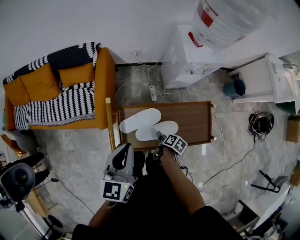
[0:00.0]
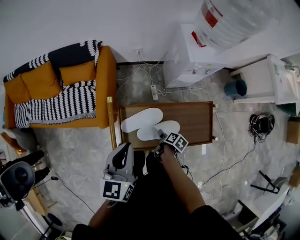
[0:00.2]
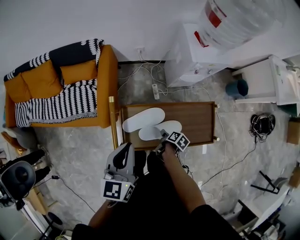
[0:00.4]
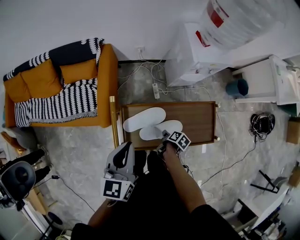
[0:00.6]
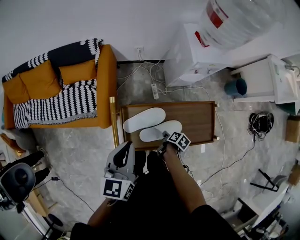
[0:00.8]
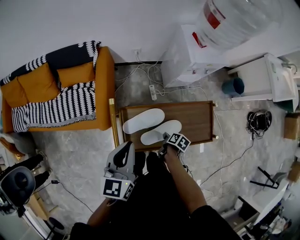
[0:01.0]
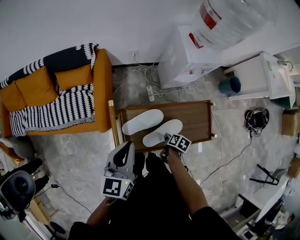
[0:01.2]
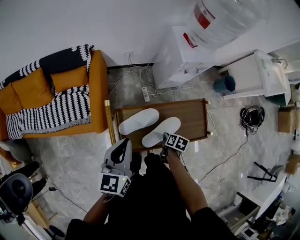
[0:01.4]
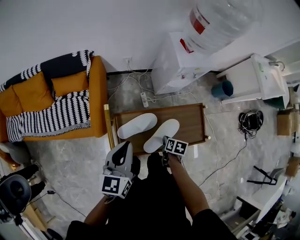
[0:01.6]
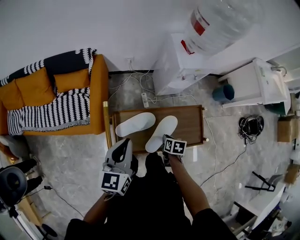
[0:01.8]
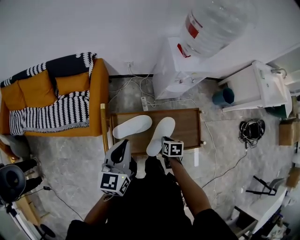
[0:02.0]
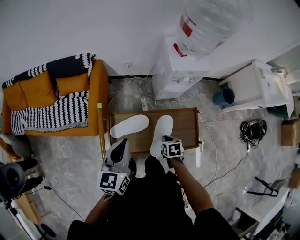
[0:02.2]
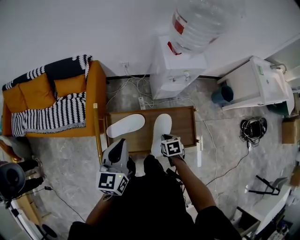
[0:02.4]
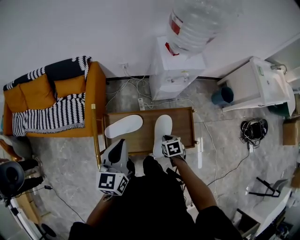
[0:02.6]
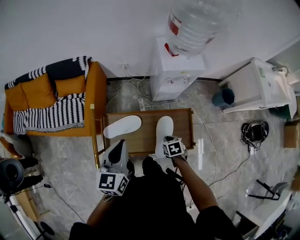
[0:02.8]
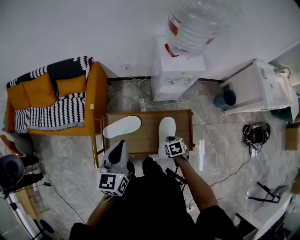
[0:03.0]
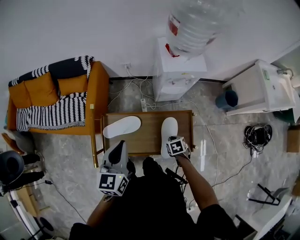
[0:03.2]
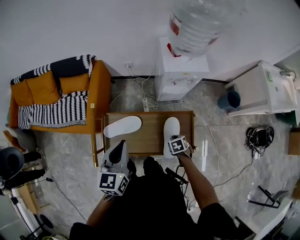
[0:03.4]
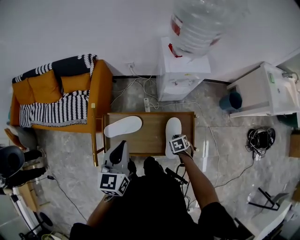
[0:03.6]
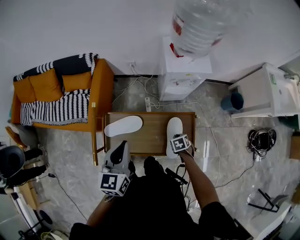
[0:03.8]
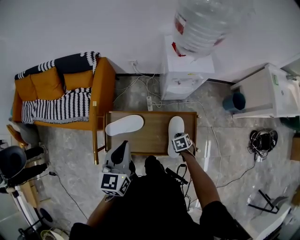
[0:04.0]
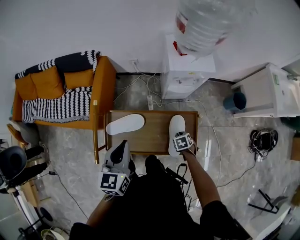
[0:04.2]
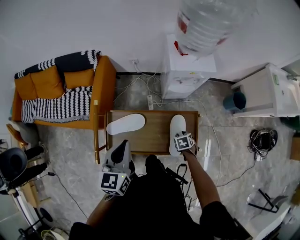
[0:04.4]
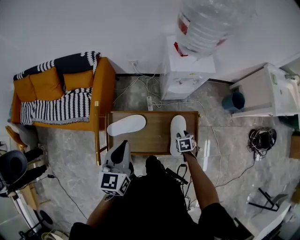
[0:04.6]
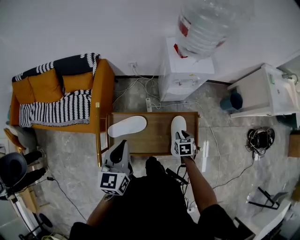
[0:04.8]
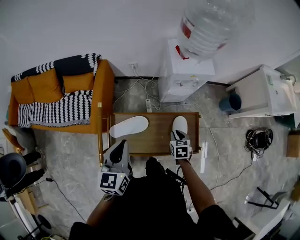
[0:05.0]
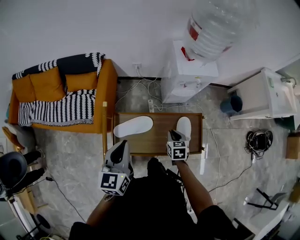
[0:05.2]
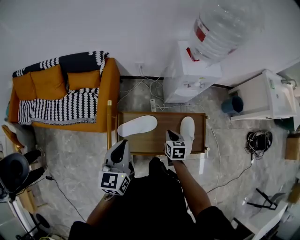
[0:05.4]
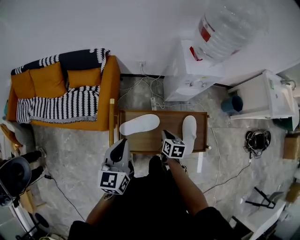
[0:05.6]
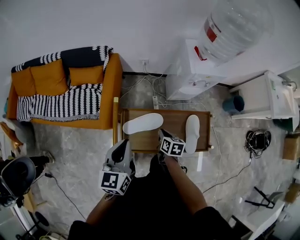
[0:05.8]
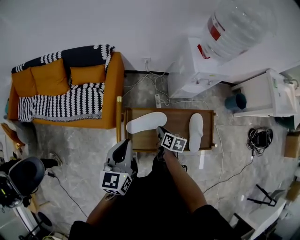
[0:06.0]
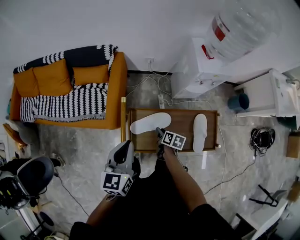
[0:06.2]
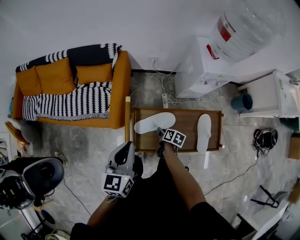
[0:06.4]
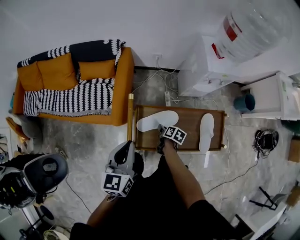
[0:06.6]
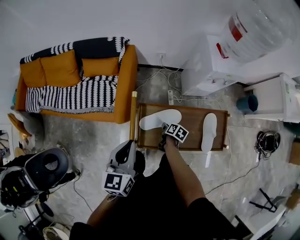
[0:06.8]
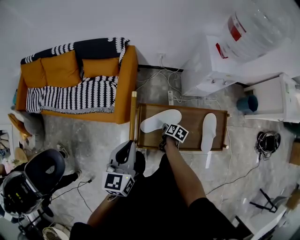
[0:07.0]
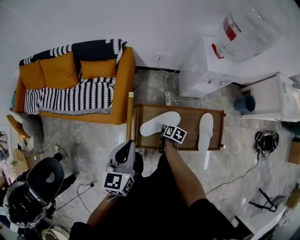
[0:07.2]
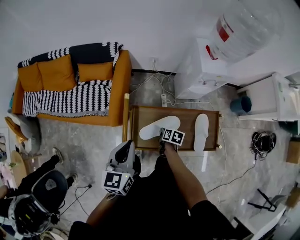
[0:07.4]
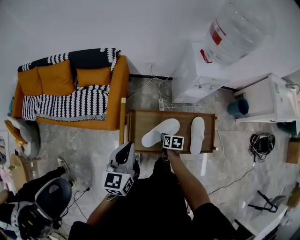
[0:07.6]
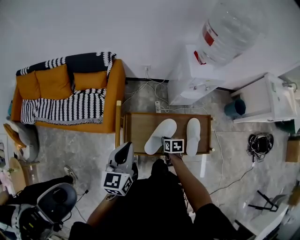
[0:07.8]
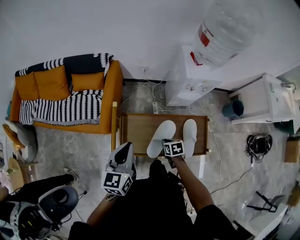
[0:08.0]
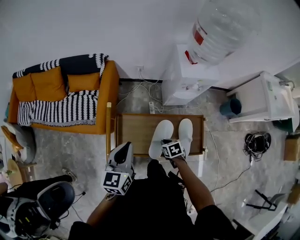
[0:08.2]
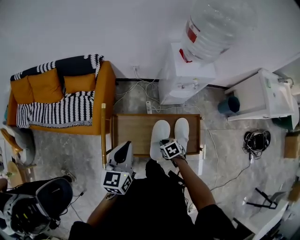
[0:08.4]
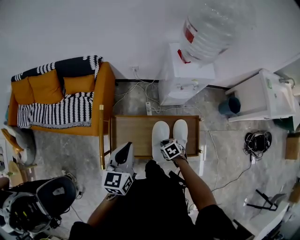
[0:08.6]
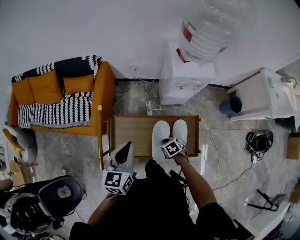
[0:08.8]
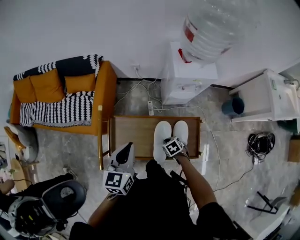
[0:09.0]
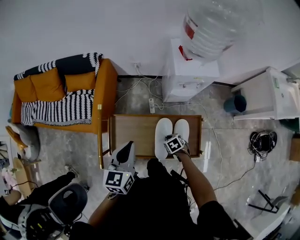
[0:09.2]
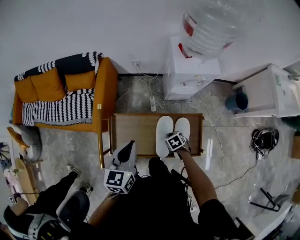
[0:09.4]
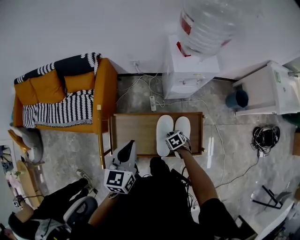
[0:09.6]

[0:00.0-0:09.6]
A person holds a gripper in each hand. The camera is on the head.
0:00.0 to 0:01.6: The right gripper turns by some 30 degrees, and closes its fingers.
0:01.6 to 0:03.2: Both grippers move to the right, approximately 15 cm. The right gripper twists roughly 40 degrees counterclockwise, seen from behind.
0:03.2 to 0:04.8: There are only small adjustments of the grippers.
0:04.8 to 0:06.4: The left gripper is displaced to the left by roughly 15 cm; the right gripper heads to the left, covering about 30 cm, twists about 50 degrees clockwise, seen from behind, and closes, then opens again.
0:06.4 to 0:08.0: The right gripper goes about 10 cm to the right, backward and upward, rotates around the line of its fingers by roughly 40 degrees, counterclockwise from behind, and closes up. The left gripper travels to the right by roughly 10 cm.
0:08.0 to 0:09.6: The left gripper travels to the right by some 15 cm, while the right gripper shifts approximately 15 cm to the right and downward, and rotates some 20 degrees.

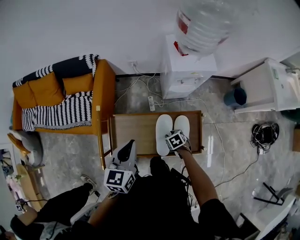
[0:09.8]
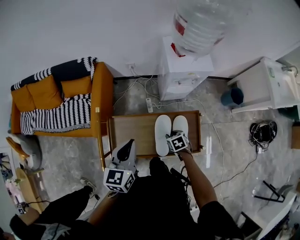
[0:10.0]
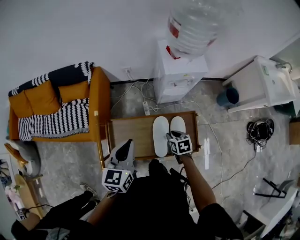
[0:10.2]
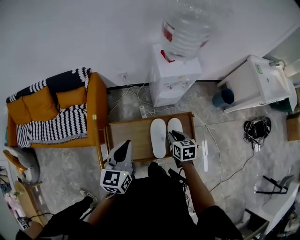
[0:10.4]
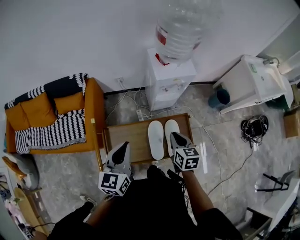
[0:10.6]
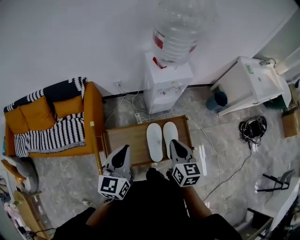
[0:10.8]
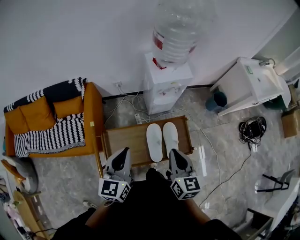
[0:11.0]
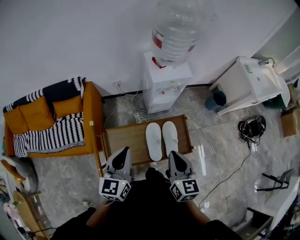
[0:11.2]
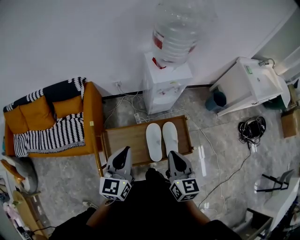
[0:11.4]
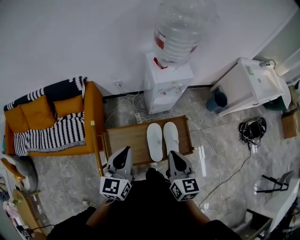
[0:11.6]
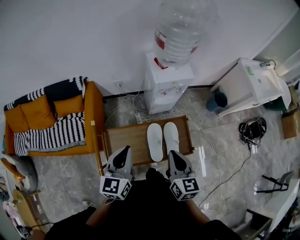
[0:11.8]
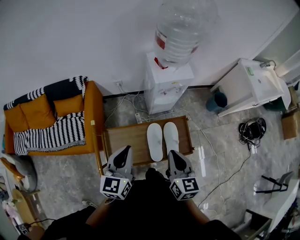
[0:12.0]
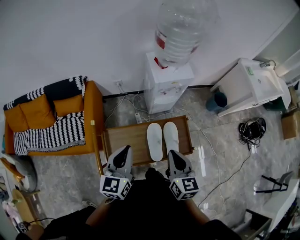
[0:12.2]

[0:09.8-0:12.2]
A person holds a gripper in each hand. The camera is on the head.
0:09.8 to 0:11.0: The right gripper goes some 35 cm upward, angles its fingers upward, by approximately 50 degrees, and closes its fingers, while the left gripper goes roughly 10 cm upward.
0:11.0 to 0:12.2: The grippers stay close to where they were, moving slightly.

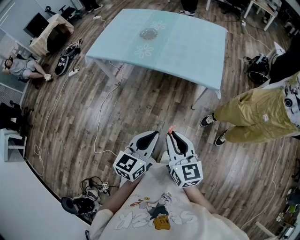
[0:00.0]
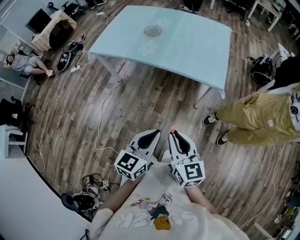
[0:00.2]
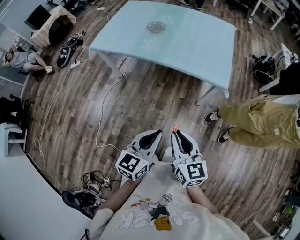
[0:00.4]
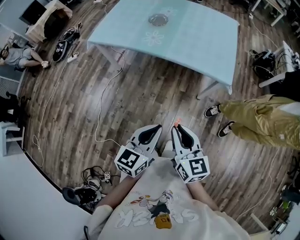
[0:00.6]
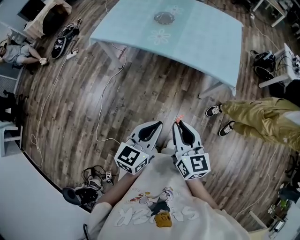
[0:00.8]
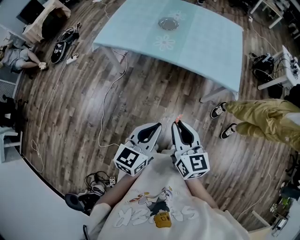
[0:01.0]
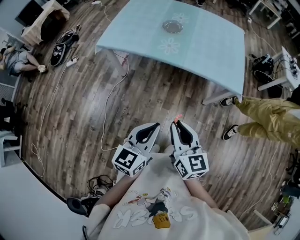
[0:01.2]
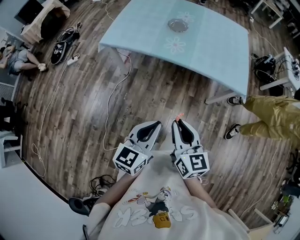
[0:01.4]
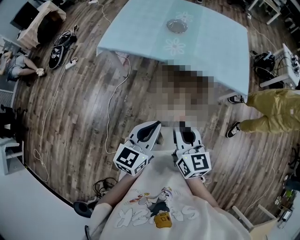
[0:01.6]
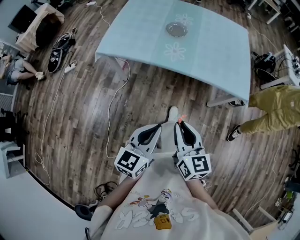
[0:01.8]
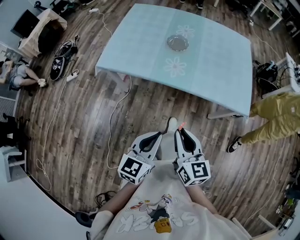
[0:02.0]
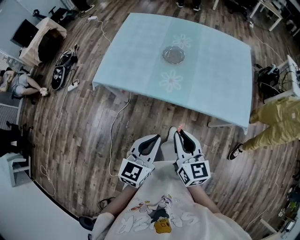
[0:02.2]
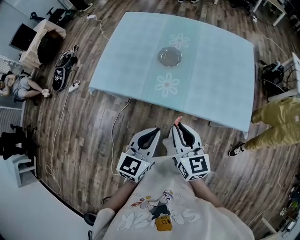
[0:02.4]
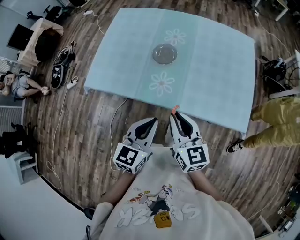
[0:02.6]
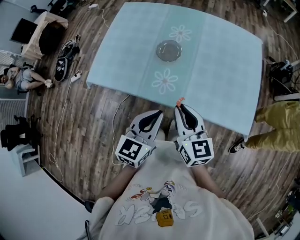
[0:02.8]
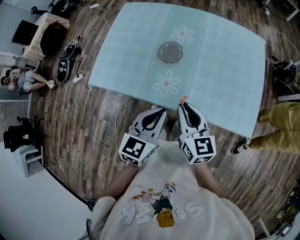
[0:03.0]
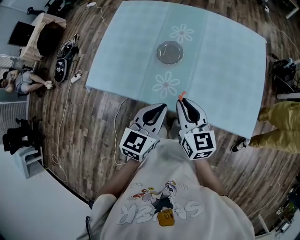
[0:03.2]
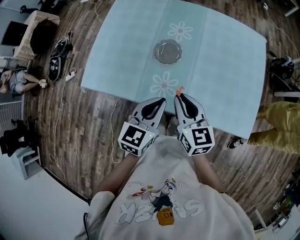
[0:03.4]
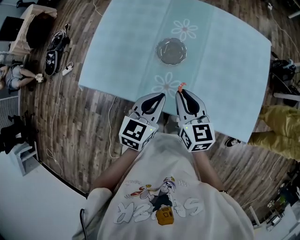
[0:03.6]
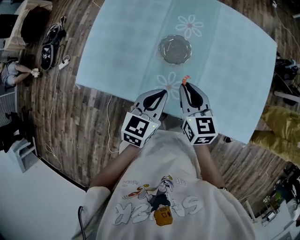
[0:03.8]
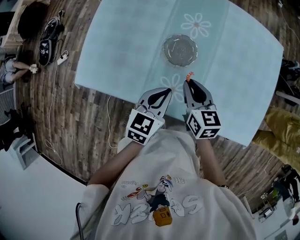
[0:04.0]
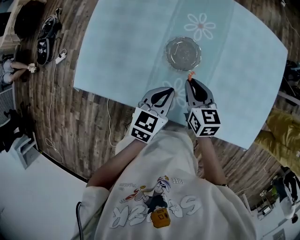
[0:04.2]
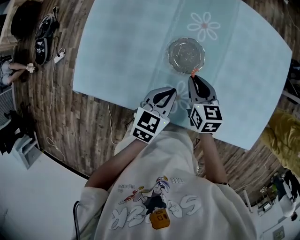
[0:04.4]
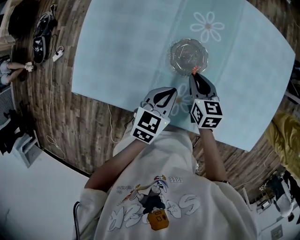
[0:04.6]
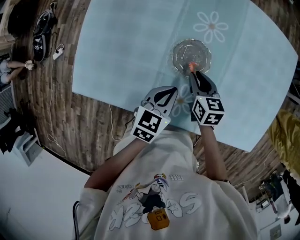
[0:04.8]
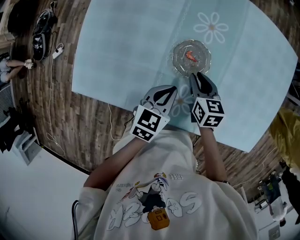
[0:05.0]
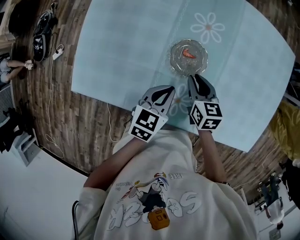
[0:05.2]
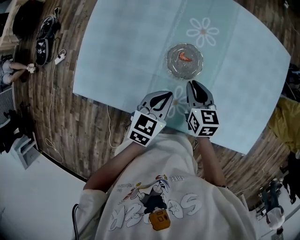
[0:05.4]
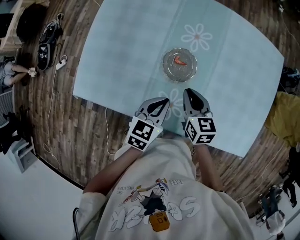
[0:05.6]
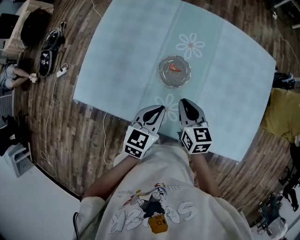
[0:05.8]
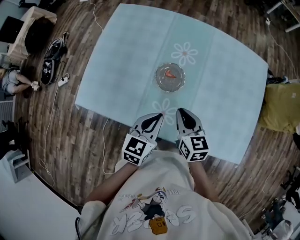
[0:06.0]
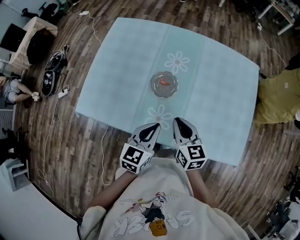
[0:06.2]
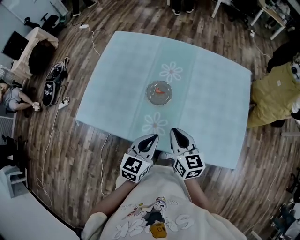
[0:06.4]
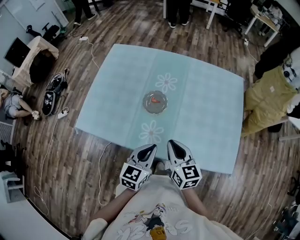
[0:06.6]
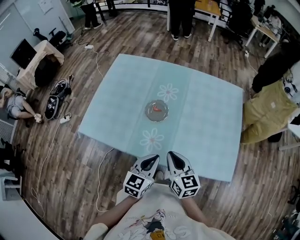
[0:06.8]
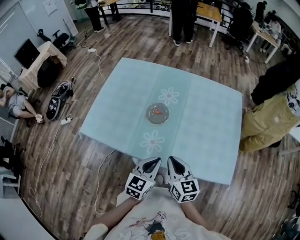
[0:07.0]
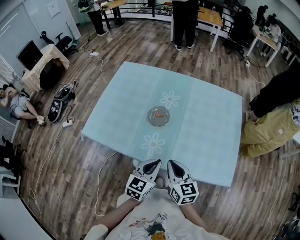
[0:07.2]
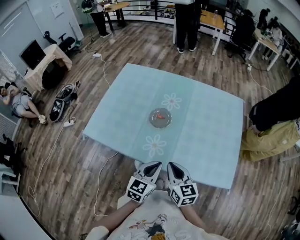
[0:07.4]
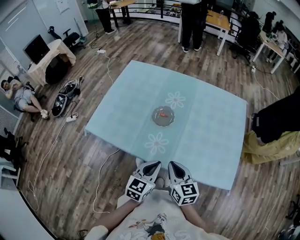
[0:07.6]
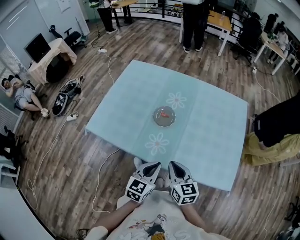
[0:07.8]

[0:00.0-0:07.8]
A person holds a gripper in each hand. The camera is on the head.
0:00.0 to 0:01.6: The right gripper shifts some 30 cm to the left and forward; the left gripper travels to the left by about 30 cm.
0:01.6 to 0:03.2: The two grippers travel together, forward, about 50 cm.
0:03.2 to 0:04.6: Both grippers travel together forward and downward, approximately 30 cm. The right gripper turns by some 20 degrees.
0:04.6 to 0:06.2: The grippers both shift backward and upward by roughly 20 cm.
0:06.2 to 0:07.8: Both grippers move backward, approximately 10 cm.

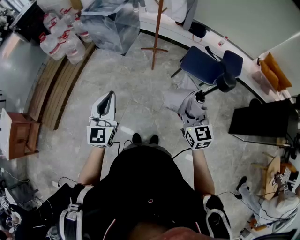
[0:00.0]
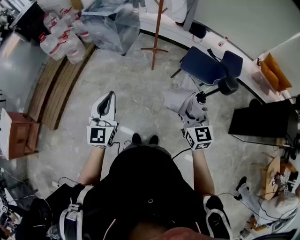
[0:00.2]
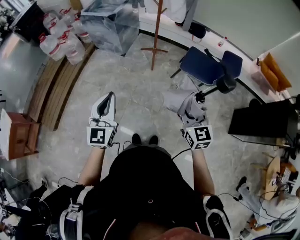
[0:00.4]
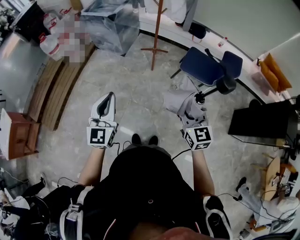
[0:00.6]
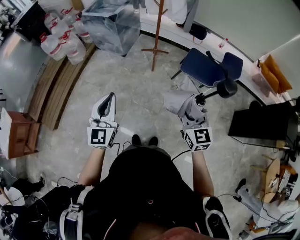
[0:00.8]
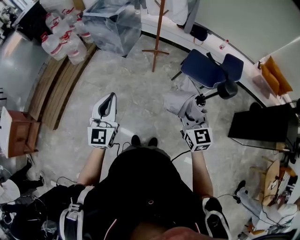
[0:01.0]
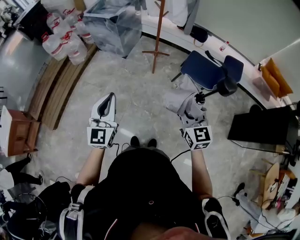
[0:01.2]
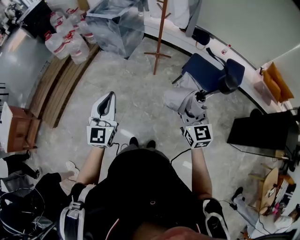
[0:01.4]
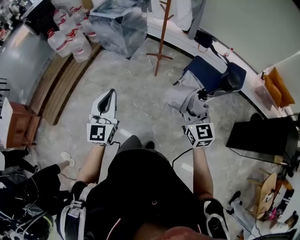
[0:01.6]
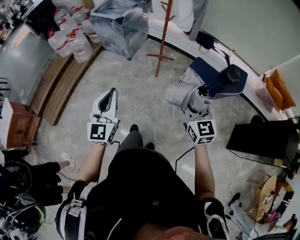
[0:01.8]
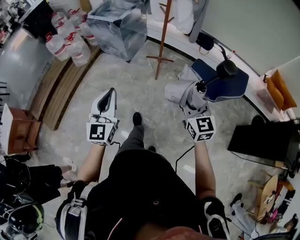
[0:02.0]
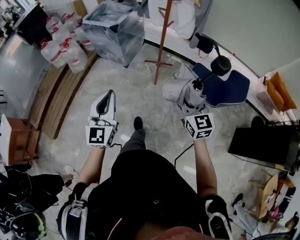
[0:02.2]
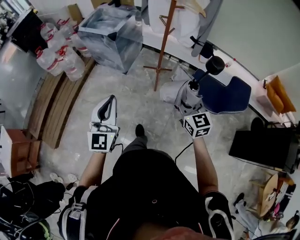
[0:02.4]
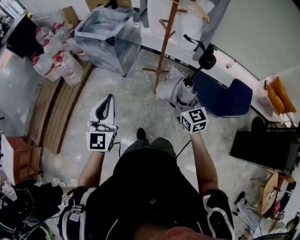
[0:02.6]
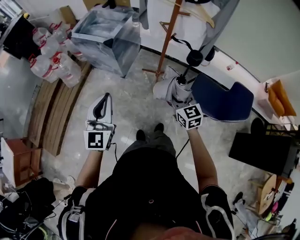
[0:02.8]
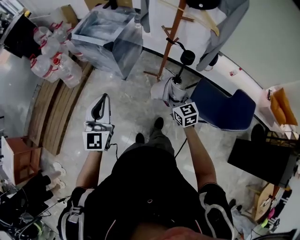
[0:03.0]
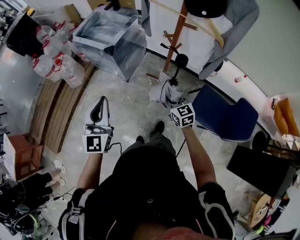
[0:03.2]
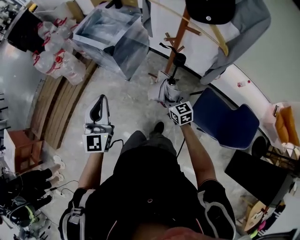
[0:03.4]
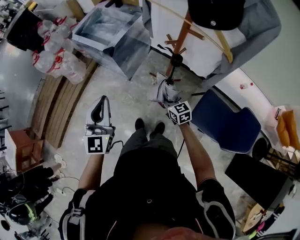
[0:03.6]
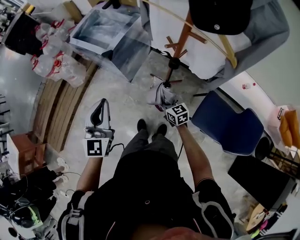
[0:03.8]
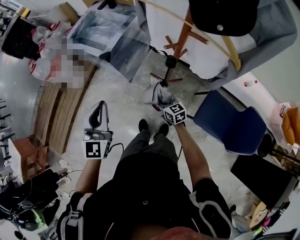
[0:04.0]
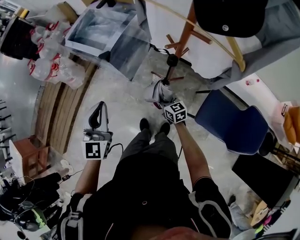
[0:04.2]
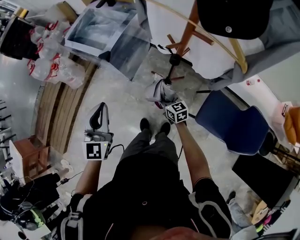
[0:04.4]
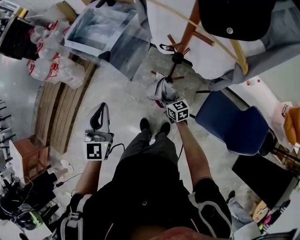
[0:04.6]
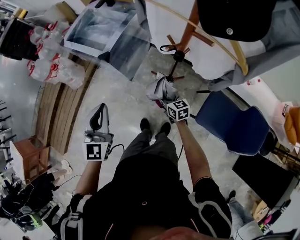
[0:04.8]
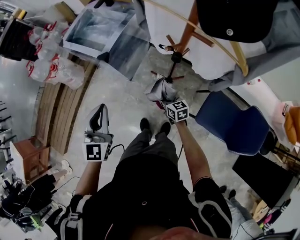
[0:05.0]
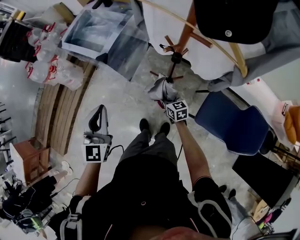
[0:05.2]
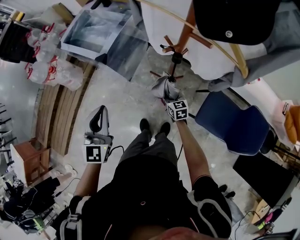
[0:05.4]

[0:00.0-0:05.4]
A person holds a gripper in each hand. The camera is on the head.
0:00.0 to 0:01.4: The right gripper shifts by some 5 cm.
0:01.4 to 0:02.8: The two grippers go some 40 cm forward.
0:02.8 to 0:04.0: The left gripper goes approximately 20 cm forward and to the right, while the right gripper heads forward and downward, covering some 30 cm, and rotates approximately 20 degrees.
0:04.0 to 0:05.4: The right gripper moves to the right and downward, approximately 10 cm.
